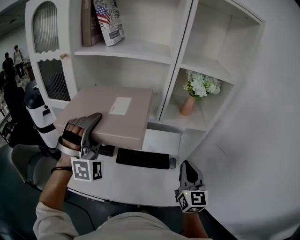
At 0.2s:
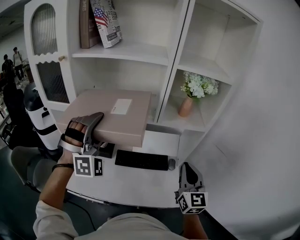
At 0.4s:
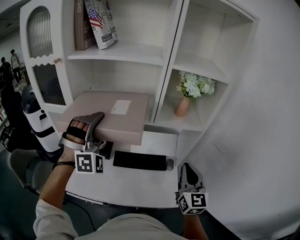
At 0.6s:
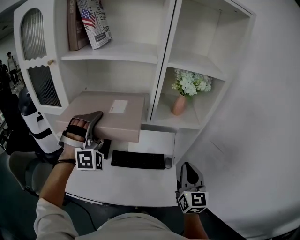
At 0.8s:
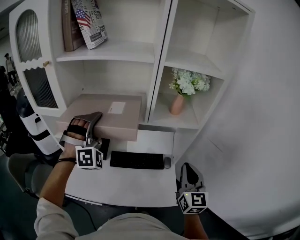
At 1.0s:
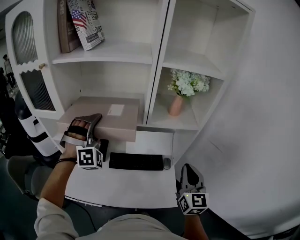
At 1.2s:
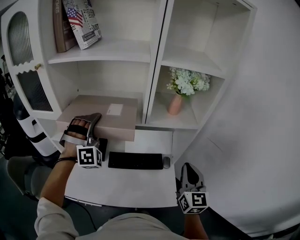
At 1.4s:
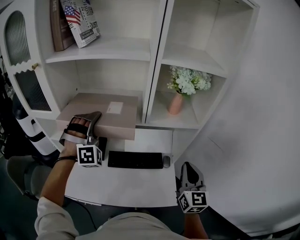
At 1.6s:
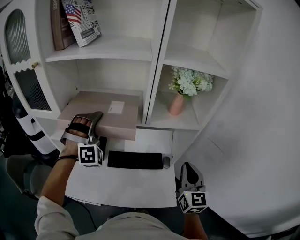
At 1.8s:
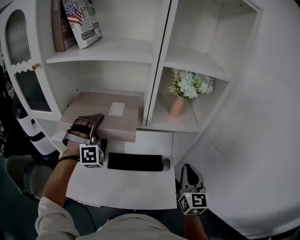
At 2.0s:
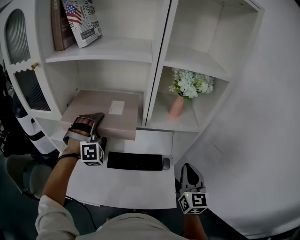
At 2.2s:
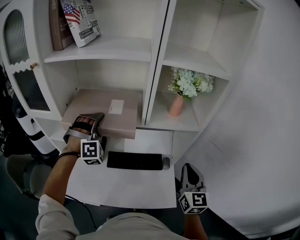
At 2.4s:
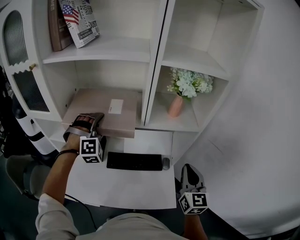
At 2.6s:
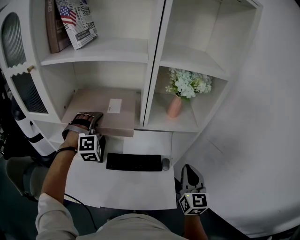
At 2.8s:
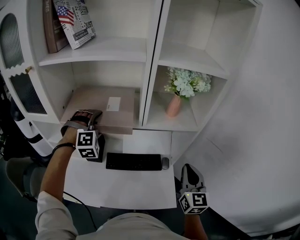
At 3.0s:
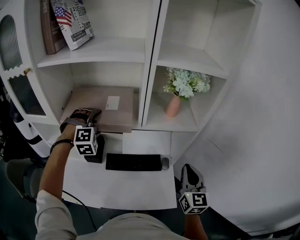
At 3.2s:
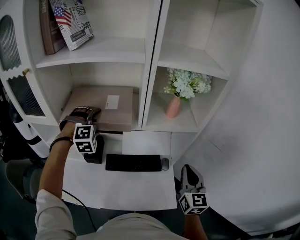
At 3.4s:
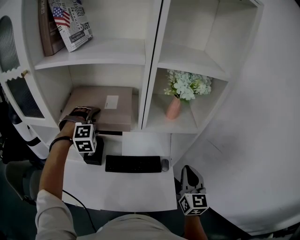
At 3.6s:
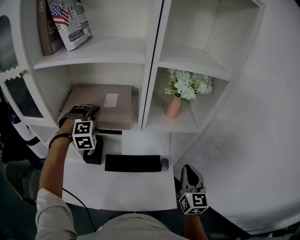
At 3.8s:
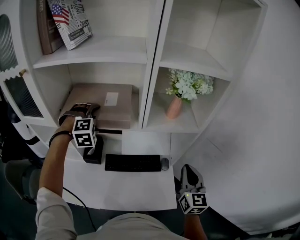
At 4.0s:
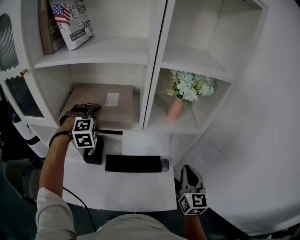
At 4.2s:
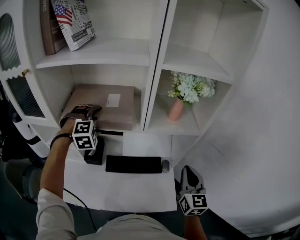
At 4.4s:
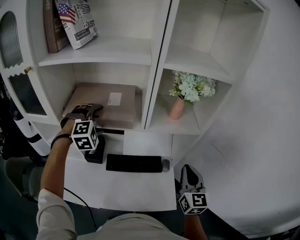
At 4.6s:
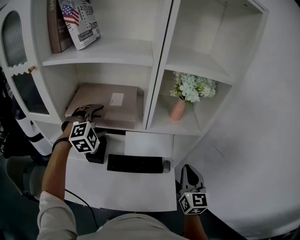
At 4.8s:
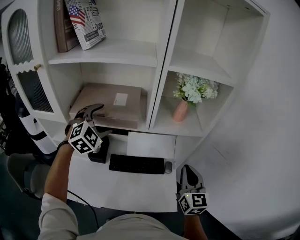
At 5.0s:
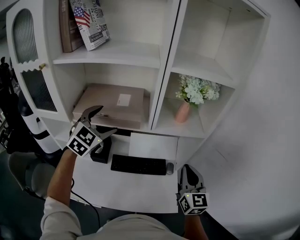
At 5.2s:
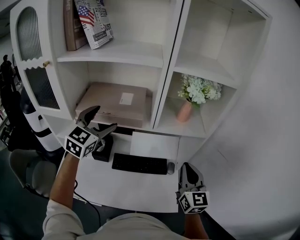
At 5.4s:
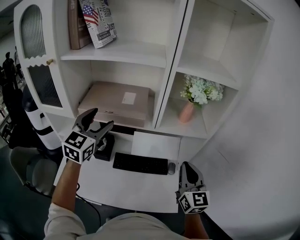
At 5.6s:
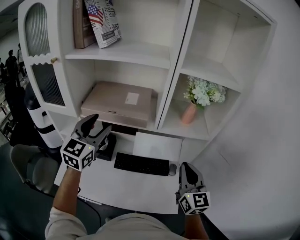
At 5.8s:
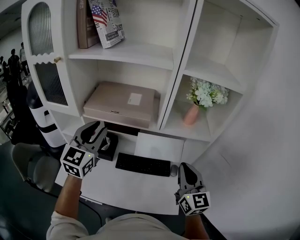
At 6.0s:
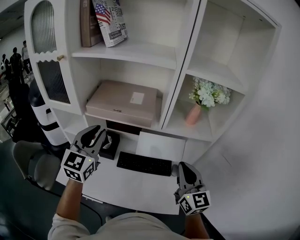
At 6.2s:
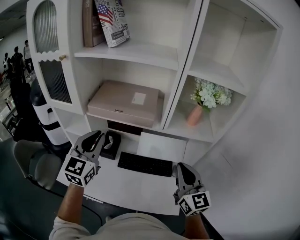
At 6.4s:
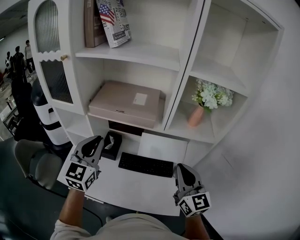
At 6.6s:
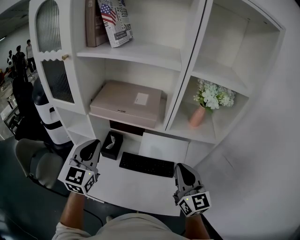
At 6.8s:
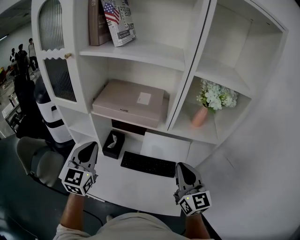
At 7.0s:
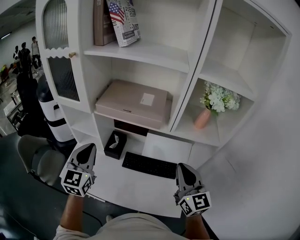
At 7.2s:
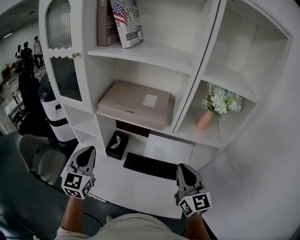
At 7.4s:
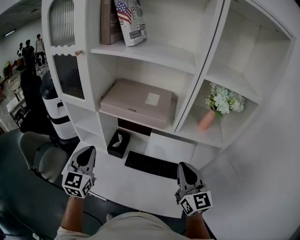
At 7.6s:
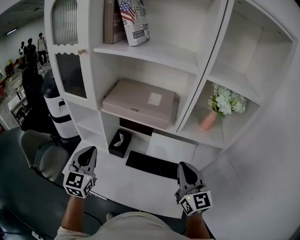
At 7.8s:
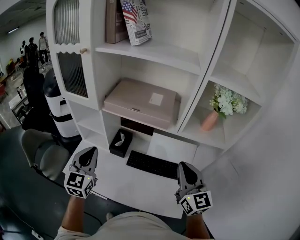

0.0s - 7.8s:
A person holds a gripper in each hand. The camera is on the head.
0.0s - 1.6s: The left gripper moves forward and downward, about 15 cm; the right gripper is displaced to the right by approximately 5 cm.
1.6s - 3.2s: The left gripper travels forward and downward by some 10 cm, and swivels approximately 30 degrees.
3.2s - 4.6s: The grippers make only small movements.
4.6s - 6.2s: The left gripper heads backward, covering some 15 cm, twists roughly 60 degrees counterclockwise, seen from behind, and closes. Meanwhile the right gripper heads to the left, covering roughly 10 cm, and rotates roughly 20 degrees.
6.2s - 7.8s: The left gripper moves to the left and downward, some 10 cm.

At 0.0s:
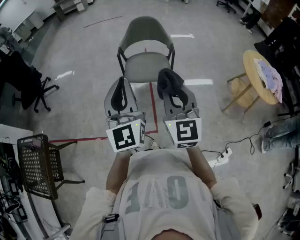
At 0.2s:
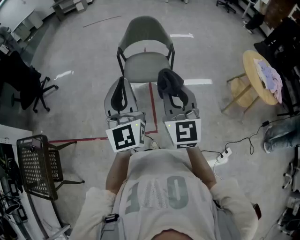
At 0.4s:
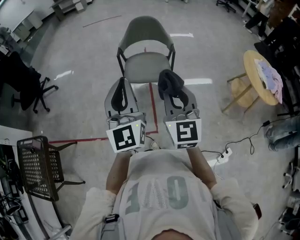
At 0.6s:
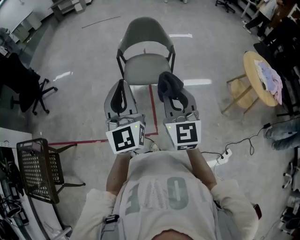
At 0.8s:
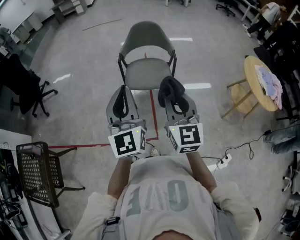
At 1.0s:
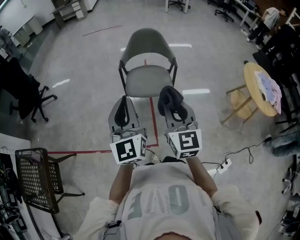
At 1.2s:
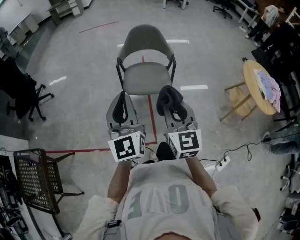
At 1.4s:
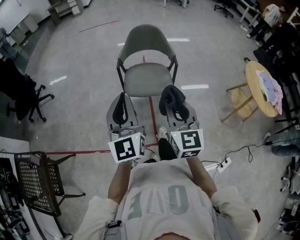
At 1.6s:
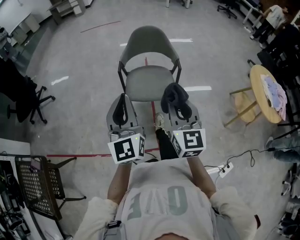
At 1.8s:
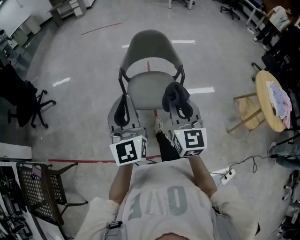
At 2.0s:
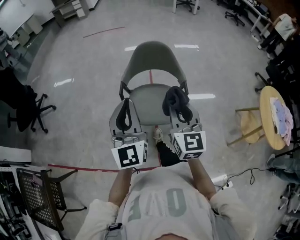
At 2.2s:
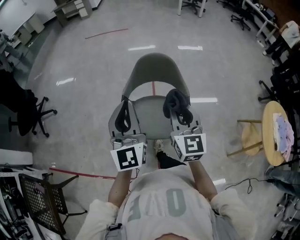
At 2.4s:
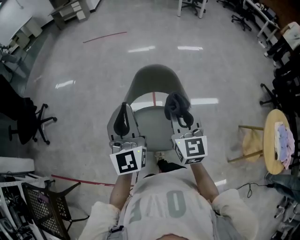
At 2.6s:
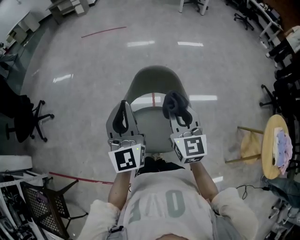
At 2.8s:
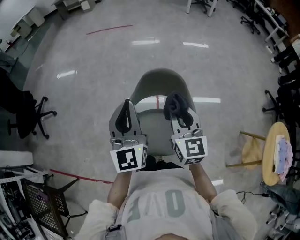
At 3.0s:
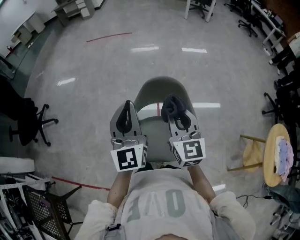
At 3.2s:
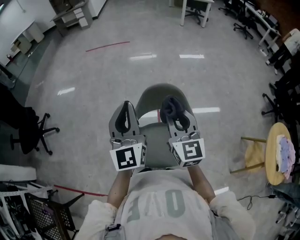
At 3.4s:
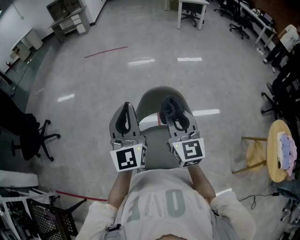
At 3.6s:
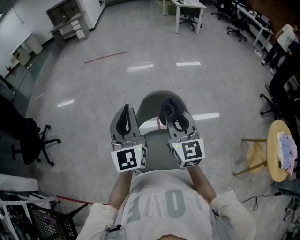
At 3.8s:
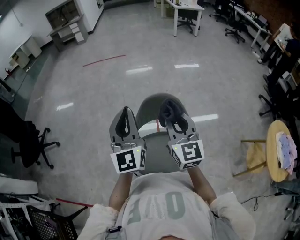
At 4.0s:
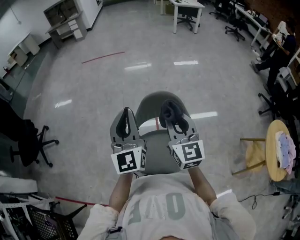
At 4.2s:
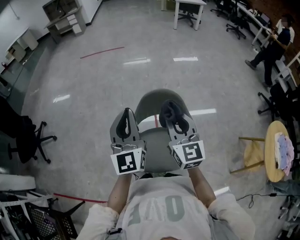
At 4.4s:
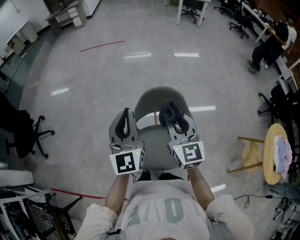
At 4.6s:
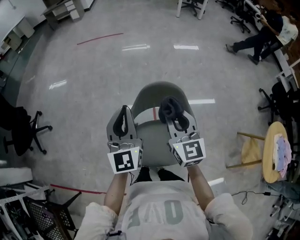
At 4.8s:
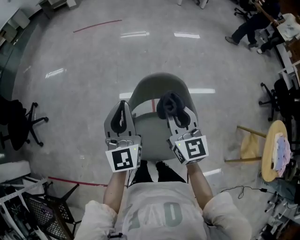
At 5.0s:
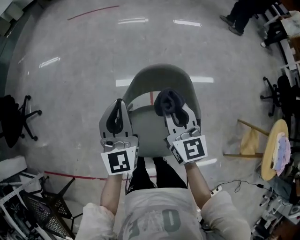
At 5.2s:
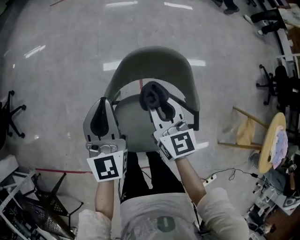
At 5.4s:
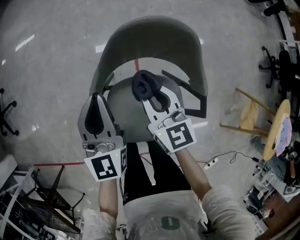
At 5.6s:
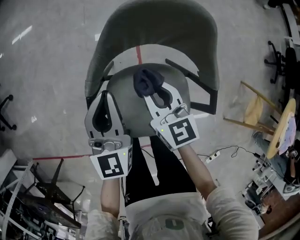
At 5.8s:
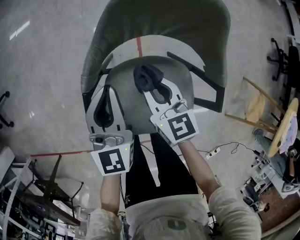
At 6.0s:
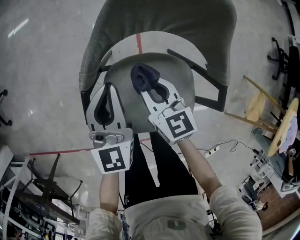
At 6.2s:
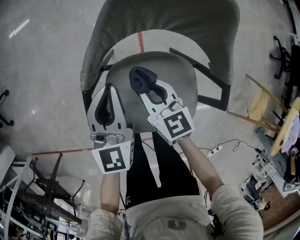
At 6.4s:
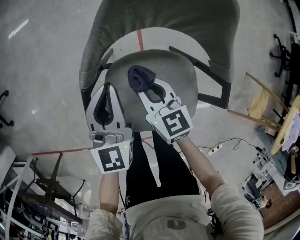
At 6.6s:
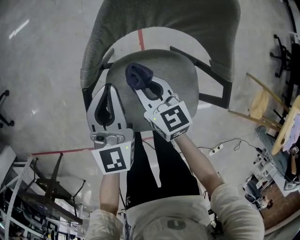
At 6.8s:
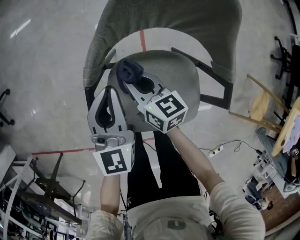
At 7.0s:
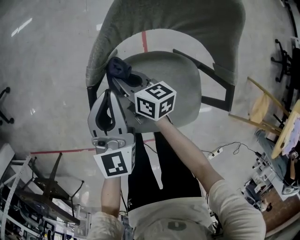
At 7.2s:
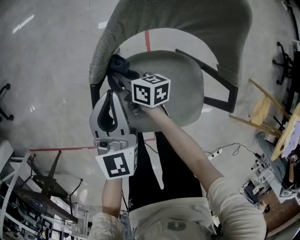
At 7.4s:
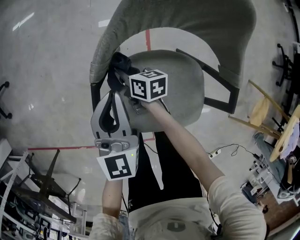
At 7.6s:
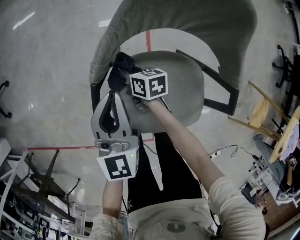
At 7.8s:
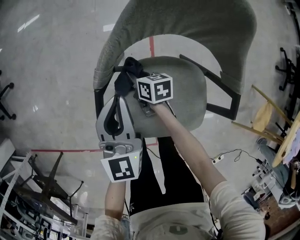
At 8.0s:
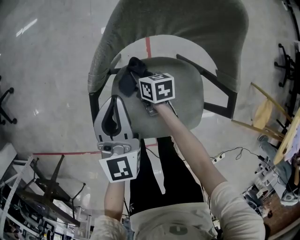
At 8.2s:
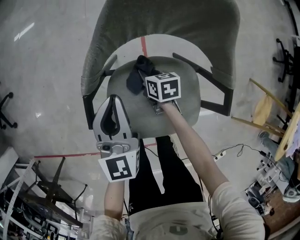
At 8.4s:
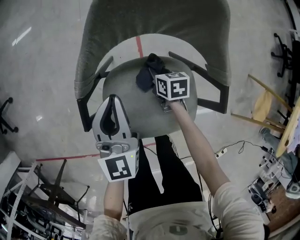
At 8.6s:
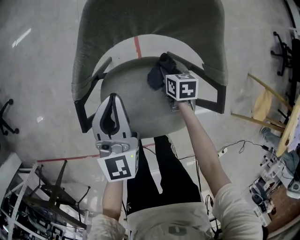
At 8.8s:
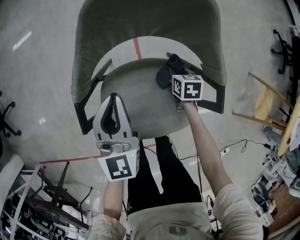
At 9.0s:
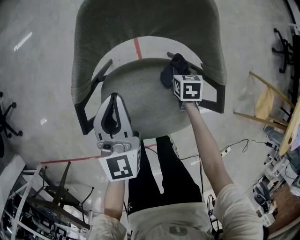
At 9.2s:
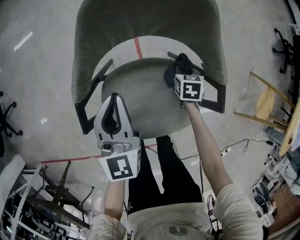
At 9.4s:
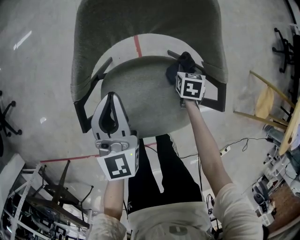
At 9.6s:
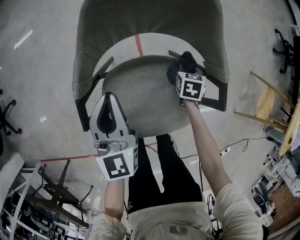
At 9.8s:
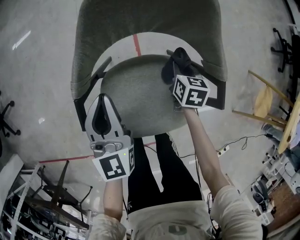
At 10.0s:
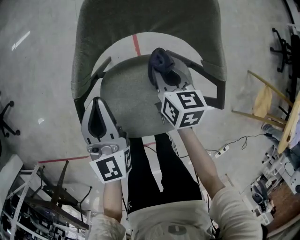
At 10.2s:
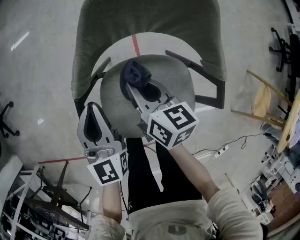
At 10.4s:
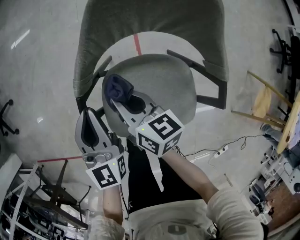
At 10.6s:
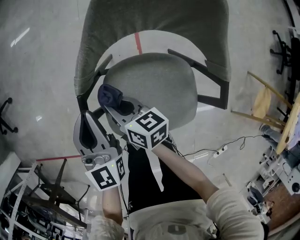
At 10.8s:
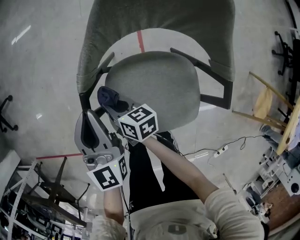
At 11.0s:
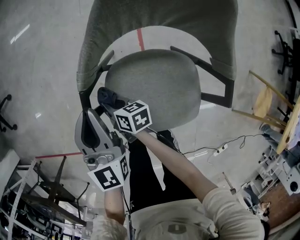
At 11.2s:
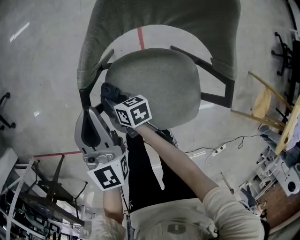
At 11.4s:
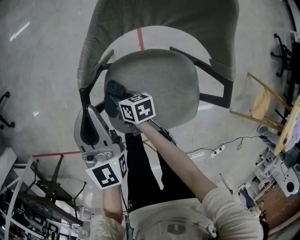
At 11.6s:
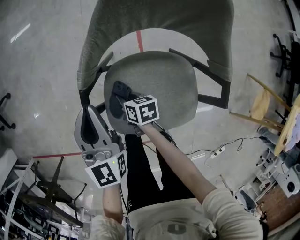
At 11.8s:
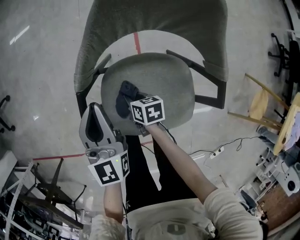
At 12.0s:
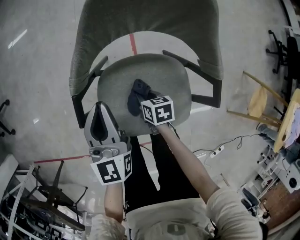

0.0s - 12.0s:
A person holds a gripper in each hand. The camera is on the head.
0.0s - 1.6s: Both grippers travel together forward and downward, roughly 15 cm.
1.6s - 3.0s: Both grippers are carried forward, roughly 50 cm.
3.0s - 4.4s: There are only small adjustments of the grippers.
4.4s - 6.0s: Both grippers move downward, about 40 cm. The right gripper changes its angle by roughly 30 degrees. Meanwhile the left gripper swivels approximately 20 degrees.
6.0s - 7.6s: The right gripper shifts approximately 20 cm downward and to the left, and changes its angle by roughly 40 degrees.
7.6s - 9.0s: The left gripper ends up about 10 cm from where it was. Meanwhile the right gripper moves about 30 cm, and rotates roughly 40 degrees.
9.0s - 10.4s: The right gripper ends up roughly 30 cm from where it was, and points its fingers some 40 degrees further upward, while the left gripper ends up approximately 10 cm from where it was.
10.4s - 12.0s: The right gripper travels downward and backward by some 20 cm, and tilts its fingers about 30 degrees downward.

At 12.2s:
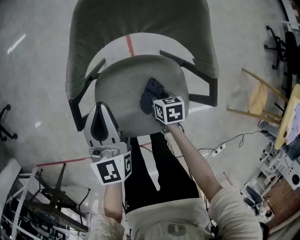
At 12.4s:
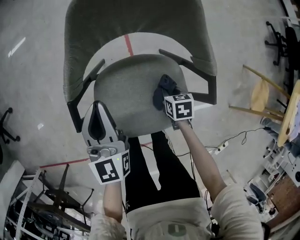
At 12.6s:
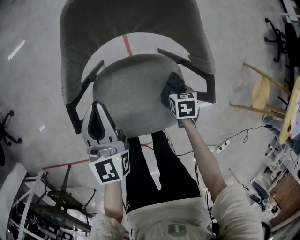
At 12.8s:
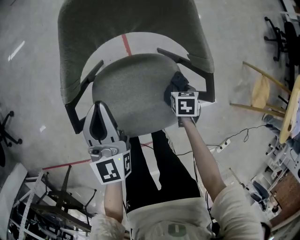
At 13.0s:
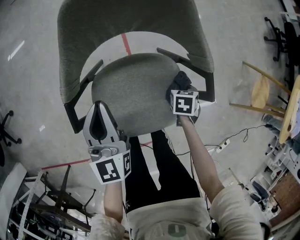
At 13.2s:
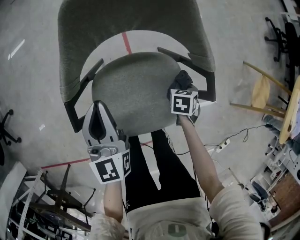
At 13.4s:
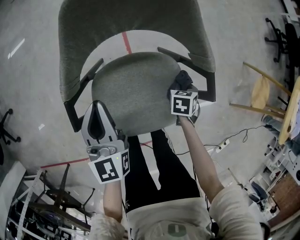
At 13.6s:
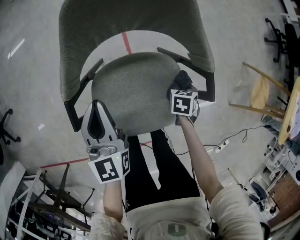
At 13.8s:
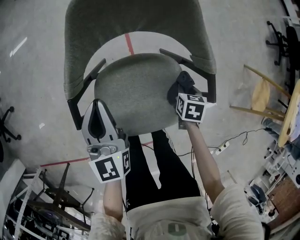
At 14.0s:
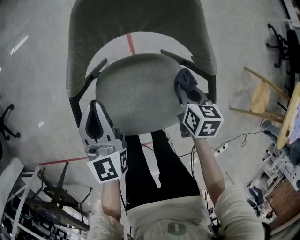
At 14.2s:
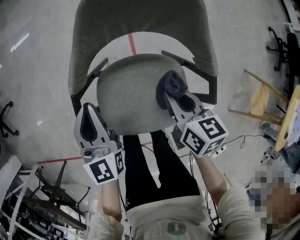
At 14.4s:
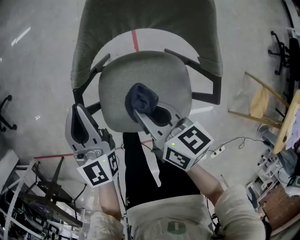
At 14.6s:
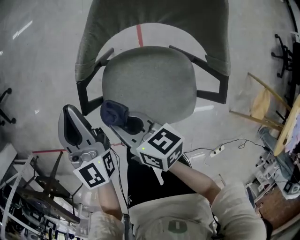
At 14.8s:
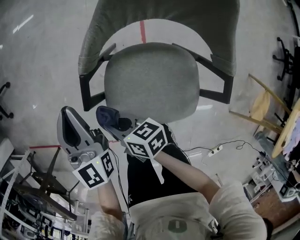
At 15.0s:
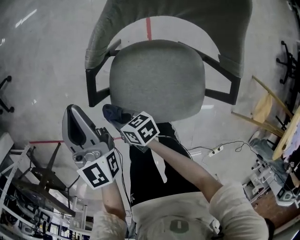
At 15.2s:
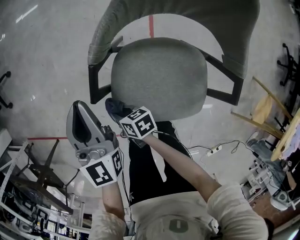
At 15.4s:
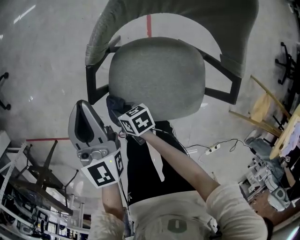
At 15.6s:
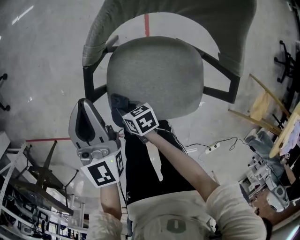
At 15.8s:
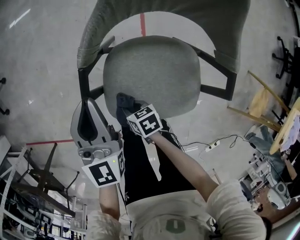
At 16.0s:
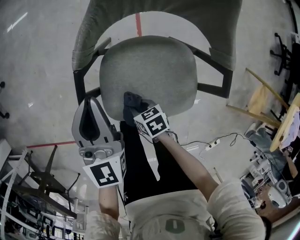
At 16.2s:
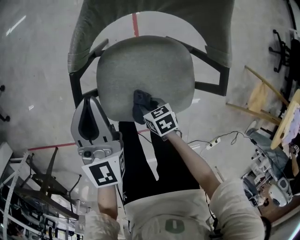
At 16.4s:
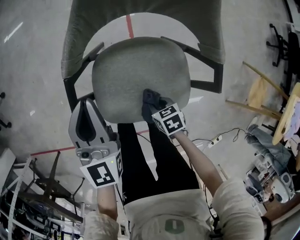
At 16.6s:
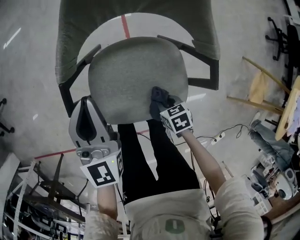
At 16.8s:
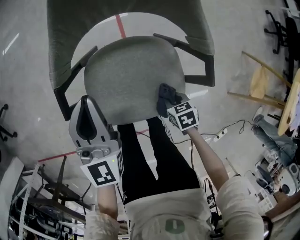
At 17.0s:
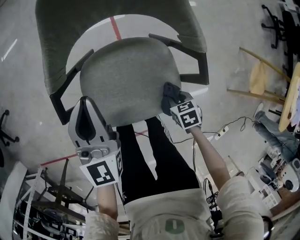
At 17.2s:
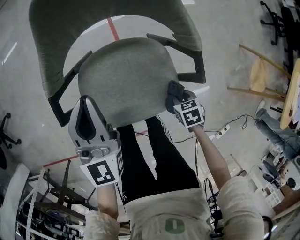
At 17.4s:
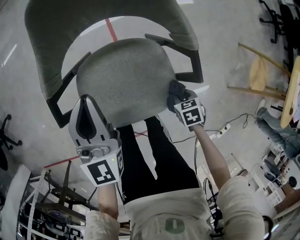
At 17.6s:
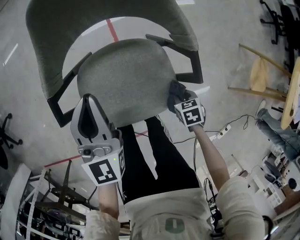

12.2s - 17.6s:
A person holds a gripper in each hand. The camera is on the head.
12.2s - 13.6s: The right gripper changes place by some 15 cm, and swivels approximately 30 degrees.
13.6s - 15.0s: The right gripper moves roughly 25 cm upward and comes back, and angles its fingers upward, by about 40 degrees; the left gripper changes place by roughly 15 cm.
15.0s - 16.2s: The left gripper shifts roughly 10 cm to the right. Meanwhile the right gripper goes roughly 20 cm to the right, backward and downward, and turns by roughly 30 degrees.
16.2s - 17.6s: The right gripper ends up roughly 25 cm from where it was, and rotates about 20 degrees, while the left gripper shifts by some 10 cm.
